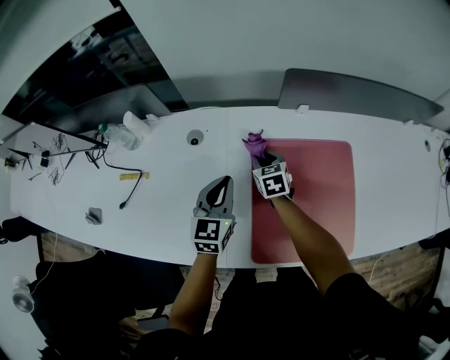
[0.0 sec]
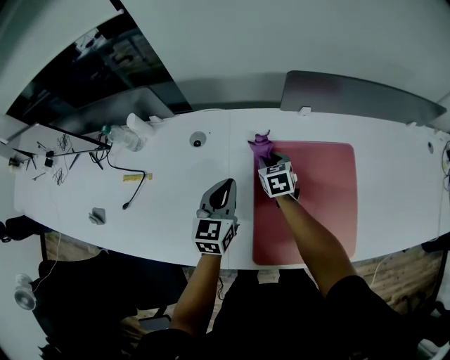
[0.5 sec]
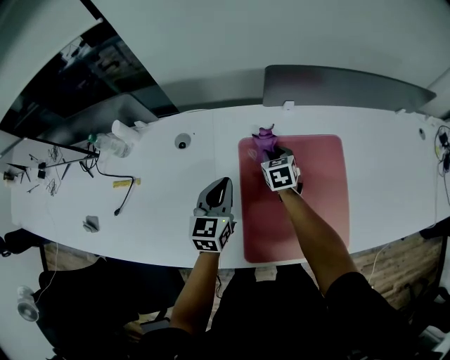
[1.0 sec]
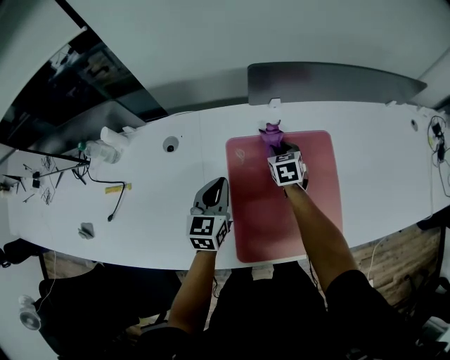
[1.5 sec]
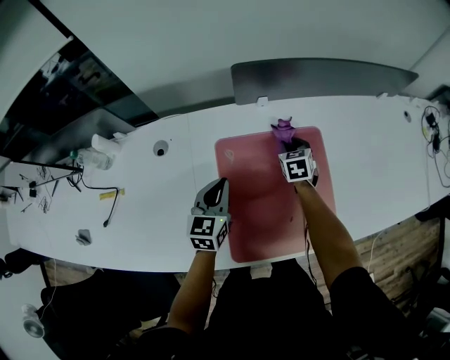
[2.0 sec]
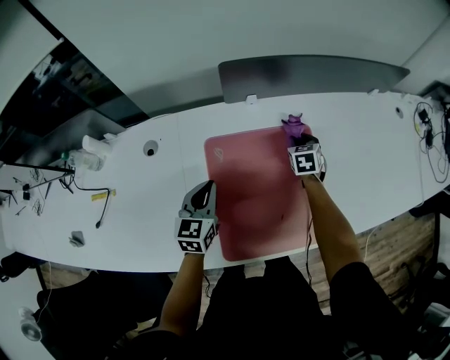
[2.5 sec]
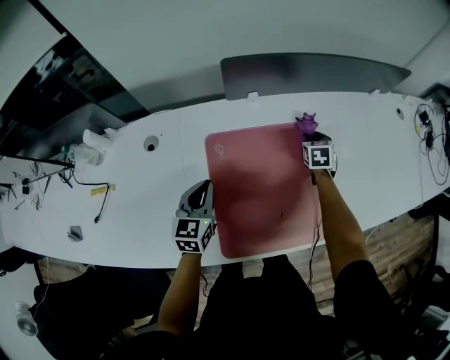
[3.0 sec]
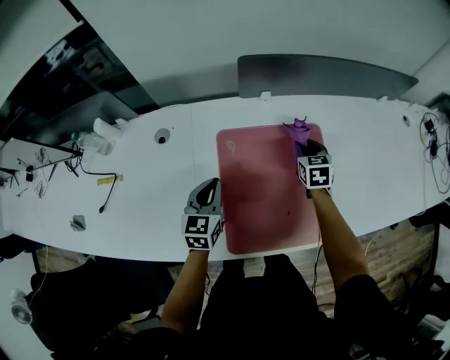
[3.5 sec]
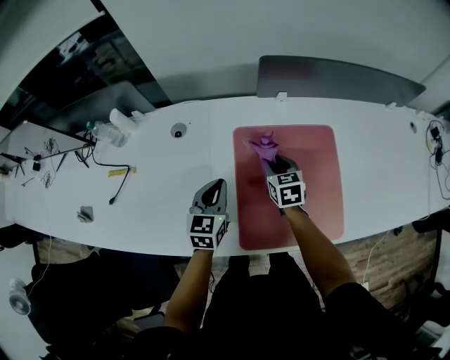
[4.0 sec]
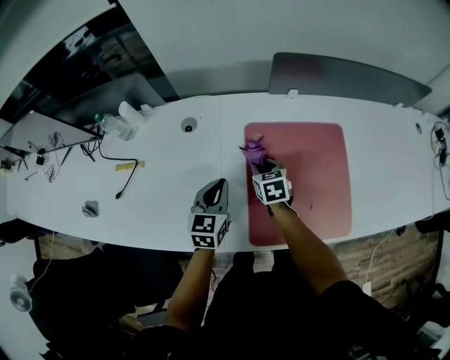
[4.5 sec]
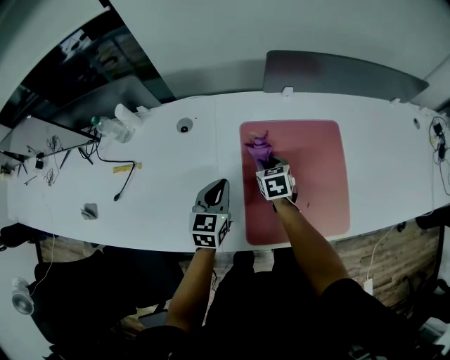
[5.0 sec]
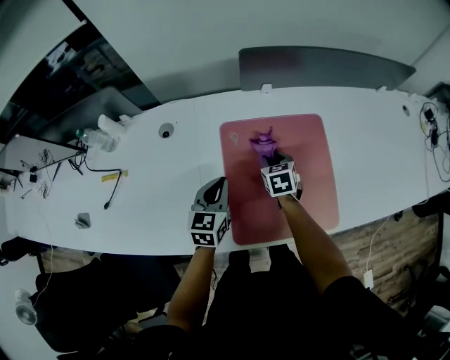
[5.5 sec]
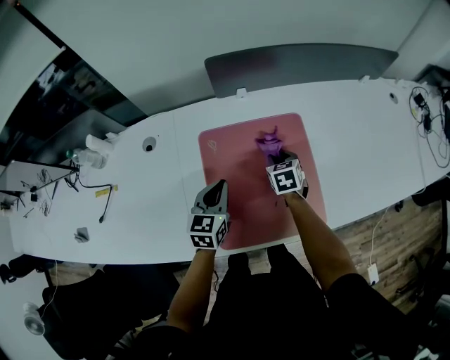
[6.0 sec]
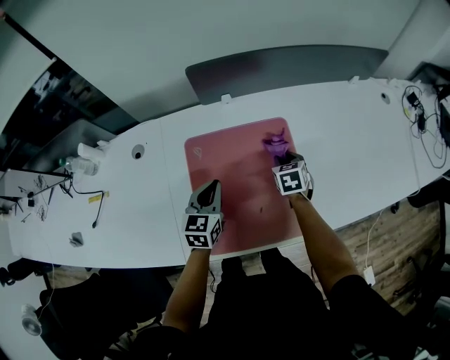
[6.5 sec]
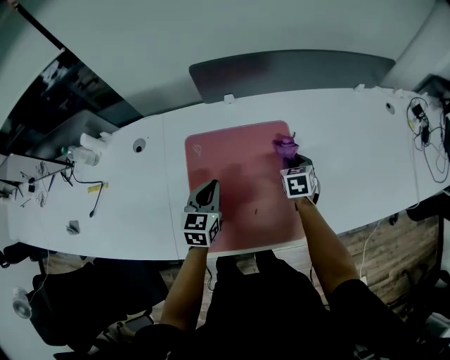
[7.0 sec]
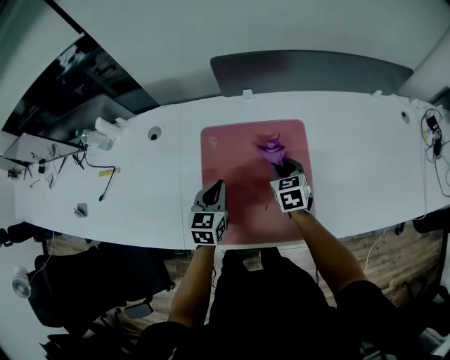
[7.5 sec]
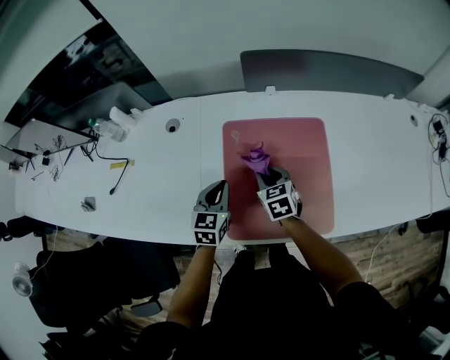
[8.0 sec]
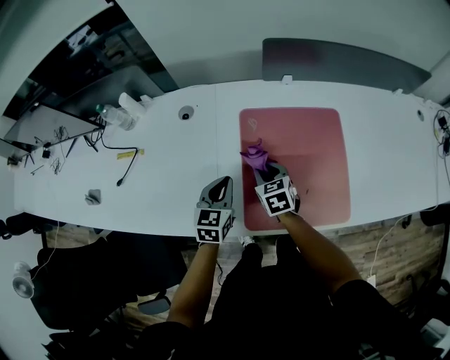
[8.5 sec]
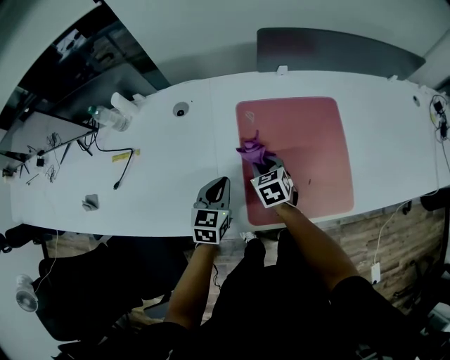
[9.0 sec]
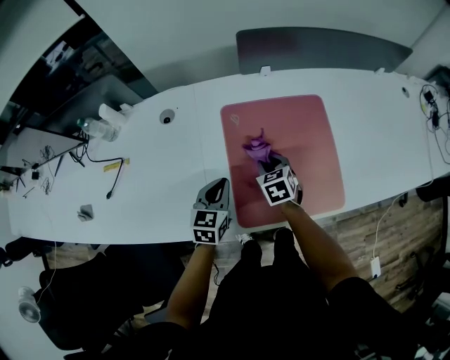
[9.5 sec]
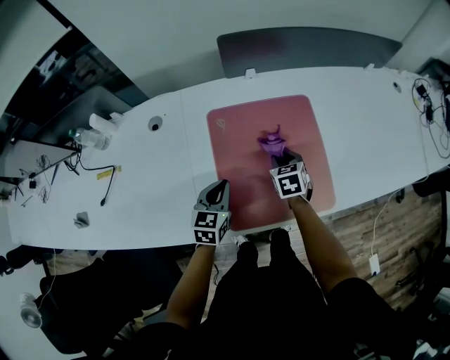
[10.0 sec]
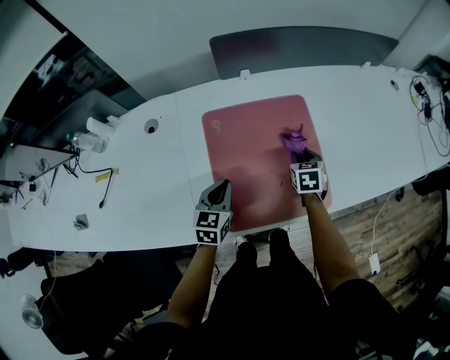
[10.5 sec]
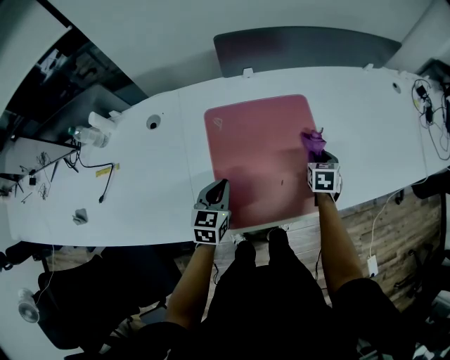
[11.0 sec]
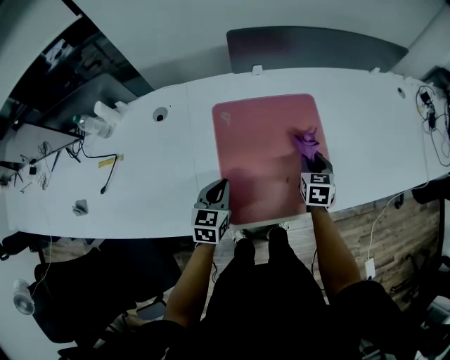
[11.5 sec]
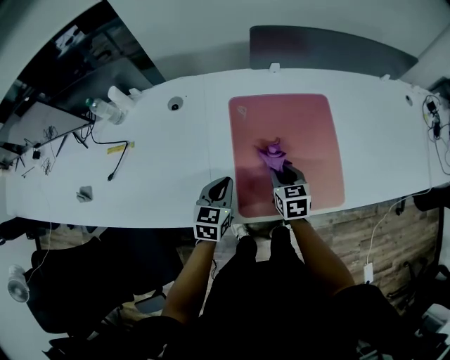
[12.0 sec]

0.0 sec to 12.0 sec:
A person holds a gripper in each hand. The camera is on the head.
0.0 sec to 2.0 sec: The right gripper is displaced to the right by about 25 cm; the left gripper goes approximately 10 cm to the right.
2.0 sec to 4.0 sec: The right gripper moves backward and to the left, about 15 cm. Meanwhile the left gripper moves backward and to the left, some 10 cm.
4.0 sec to 6.0 sec: The grippers both shift to the right by some 10 cm.
6.0 sec to 8.0 sec: The right gripper moves to the left and backward, some 15 cm, while the left gripper shifts some 5 cm to the left.
8.0 sec to 10.0 sec: The left gripper goes to the left and returns, about 5 cm each way. The right gripper shifts approximately 10 cm to the right.
10.0 sec to 12.0 sec: The left gripper changes place by roughly 5 cm. The right gripper shifts some 10 cm backward, and travels to the right and back again, some 15 cm each way.

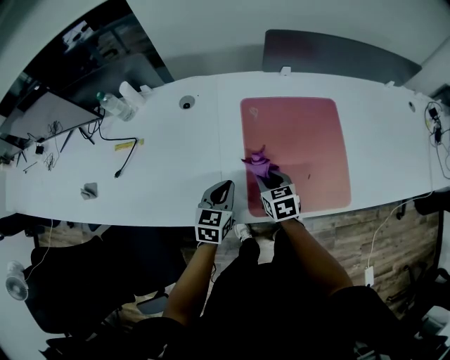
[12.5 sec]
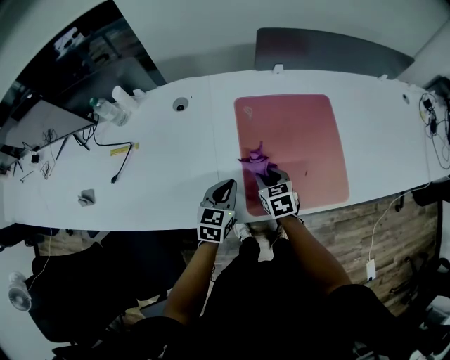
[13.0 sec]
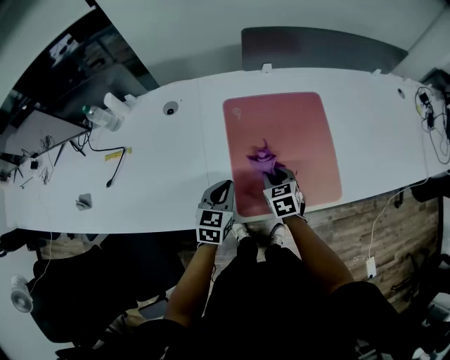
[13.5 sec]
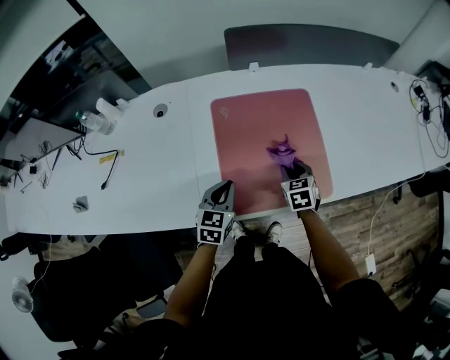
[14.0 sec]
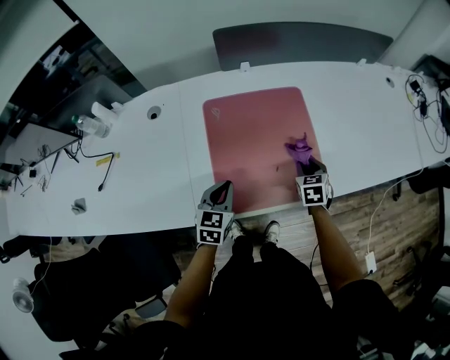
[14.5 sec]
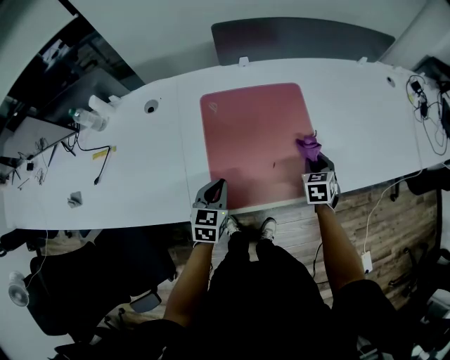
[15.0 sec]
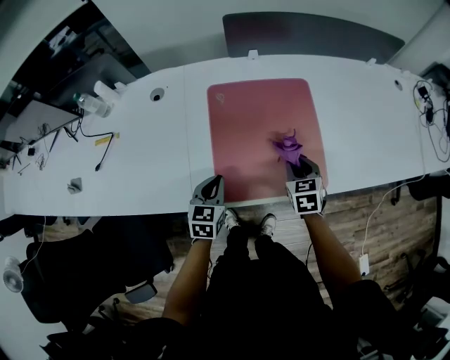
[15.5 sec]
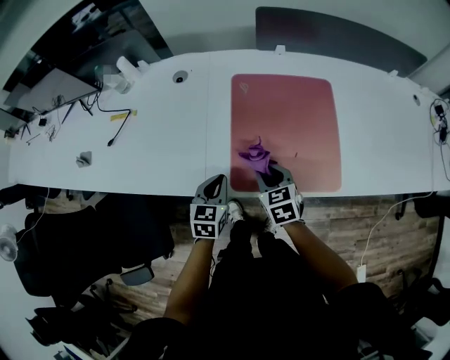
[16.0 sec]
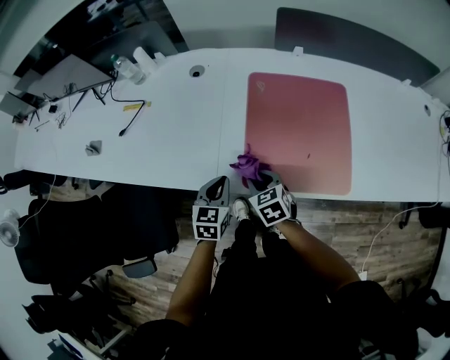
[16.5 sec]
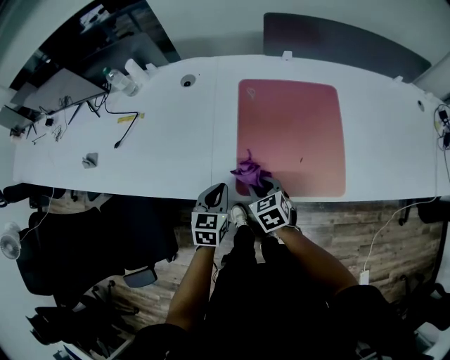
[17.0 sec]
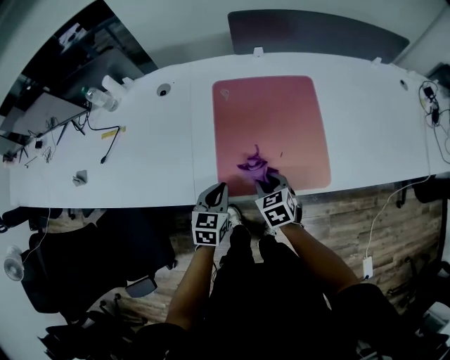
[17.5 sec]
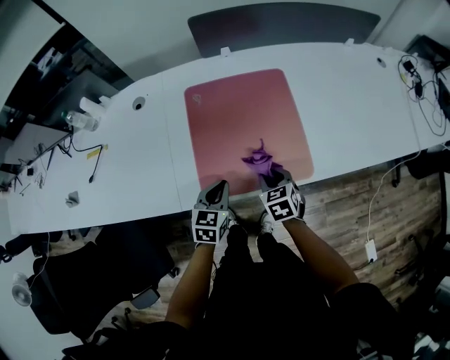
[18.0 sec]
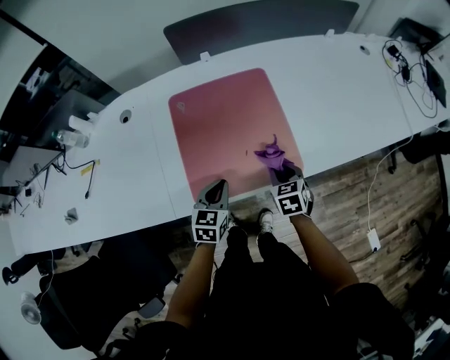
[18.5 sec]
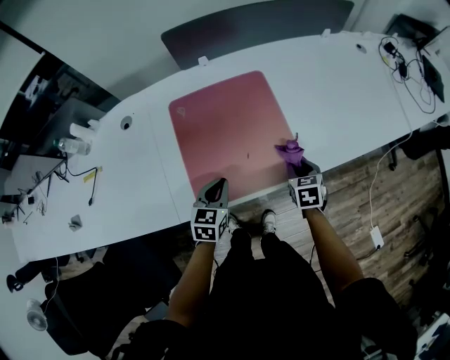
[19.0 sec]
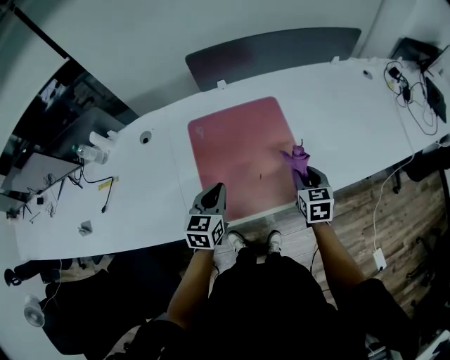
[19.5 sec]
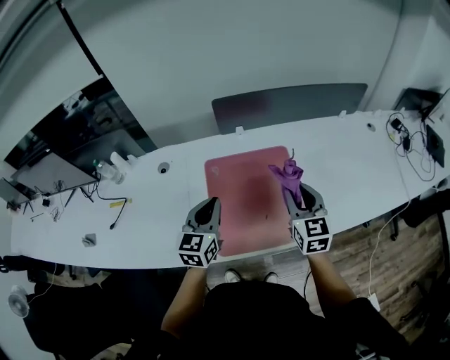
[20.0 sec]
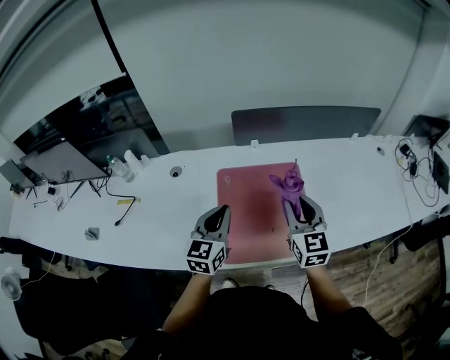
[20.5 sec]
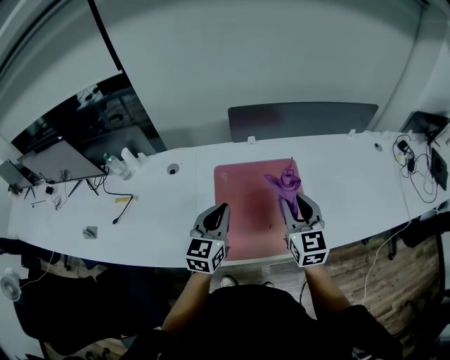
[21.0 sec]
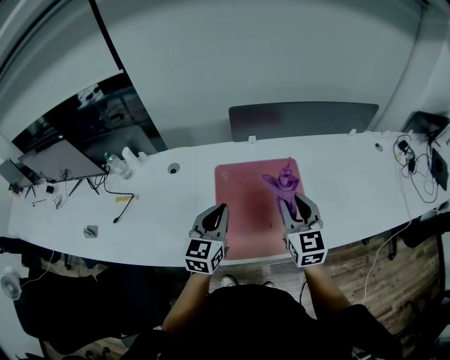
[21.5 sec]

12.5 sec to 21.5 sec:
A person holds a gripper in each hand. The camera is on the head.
12.5 sec to 14.5 sec: The left gripper shifts some 10 cm to the right; the right gripper goes about 25 cm to the right, and swivels about 20 degrees.
14.5 sec to 17.0 sec: The right gripper moves about 30 cm, and changes its angle by some 30 degrees, while the left gripper changes place by approximately 10 cm.
17.0 sec to 19.5 sec: The left gripper moves about 15 cm. Meanwhile the right gripper ends up approximately 30 cm from where it was, and turns by roughly 40 degrees.
19.5 sec to 21.5 sec: The right gripper travels upward and to the left by about 20 cm, and turns by approximately 30 degrees, while the left gripper is displaced upward by about 15 cm.

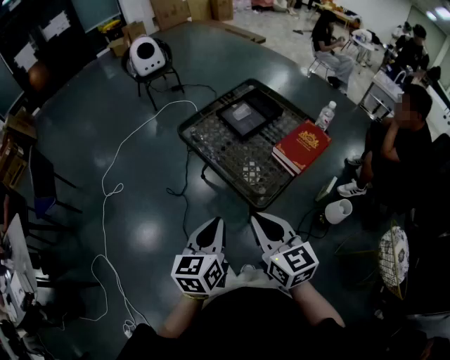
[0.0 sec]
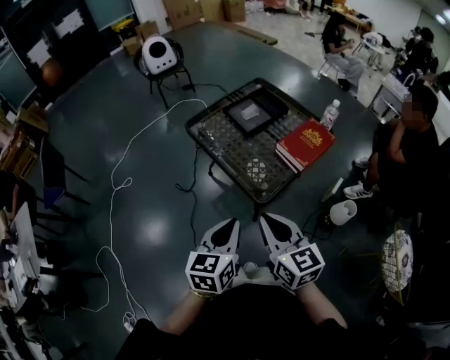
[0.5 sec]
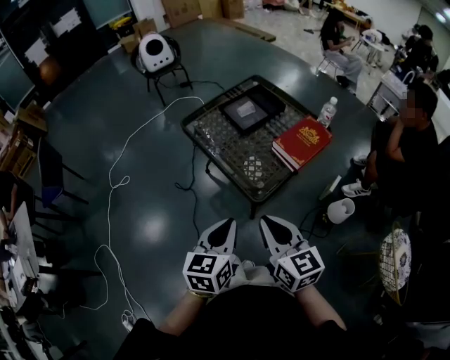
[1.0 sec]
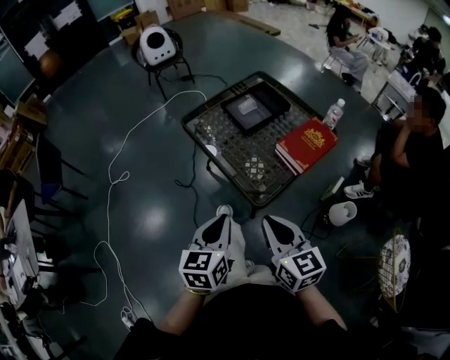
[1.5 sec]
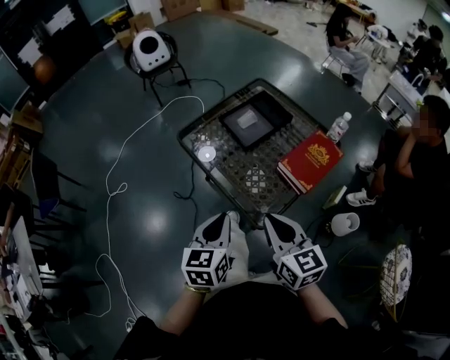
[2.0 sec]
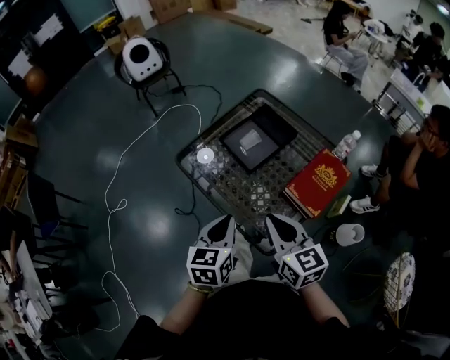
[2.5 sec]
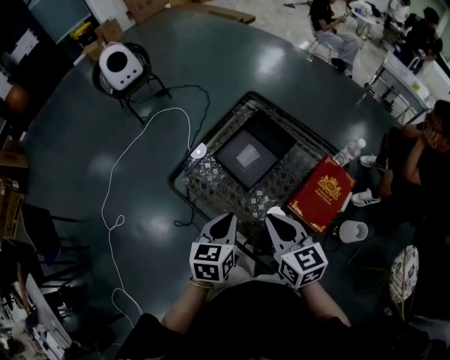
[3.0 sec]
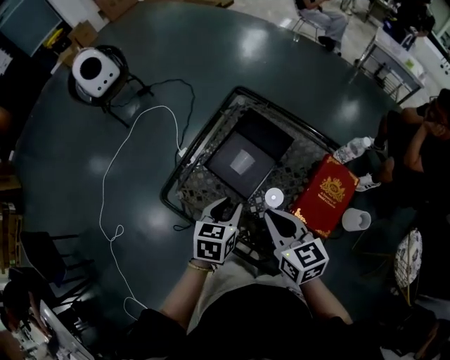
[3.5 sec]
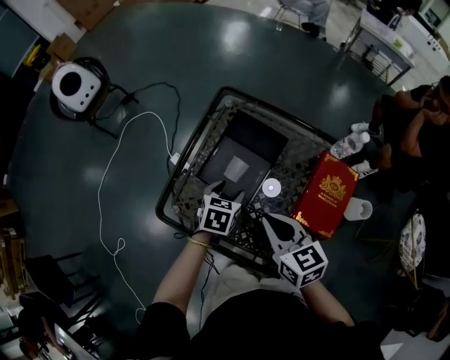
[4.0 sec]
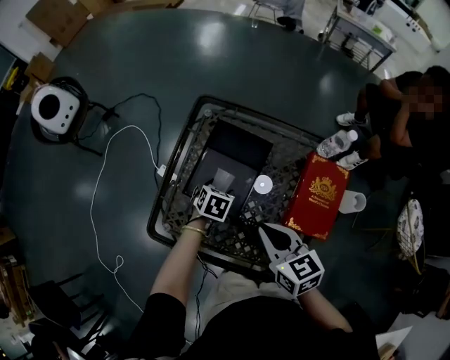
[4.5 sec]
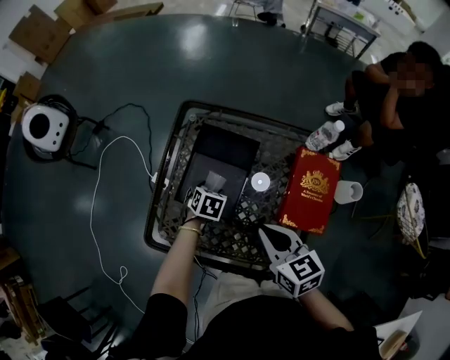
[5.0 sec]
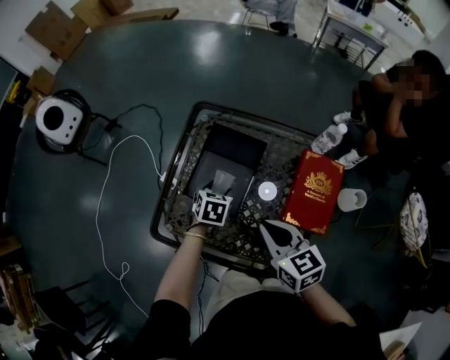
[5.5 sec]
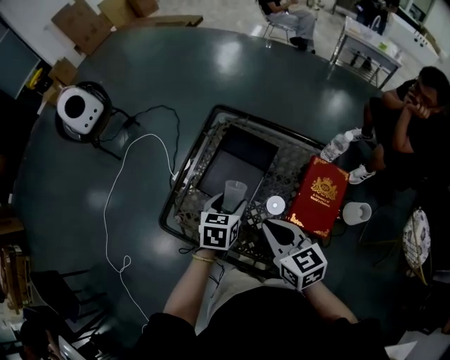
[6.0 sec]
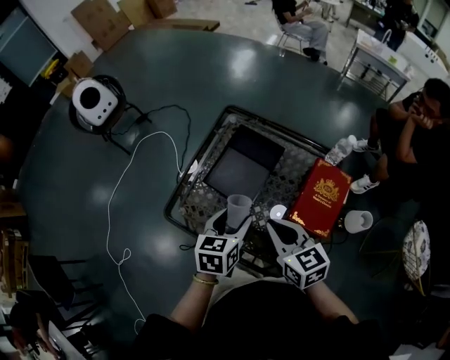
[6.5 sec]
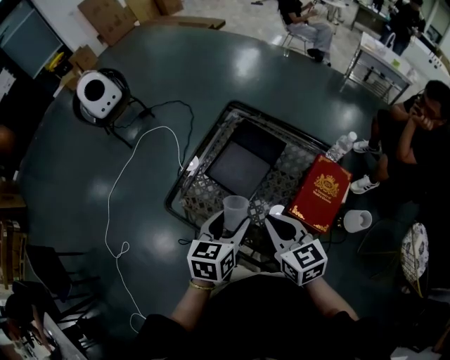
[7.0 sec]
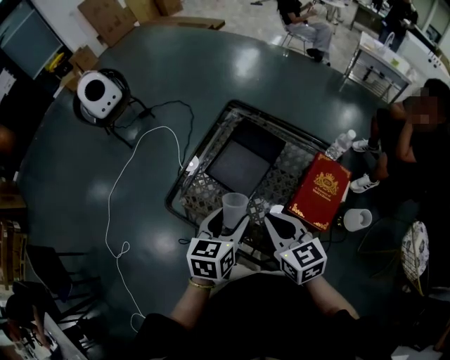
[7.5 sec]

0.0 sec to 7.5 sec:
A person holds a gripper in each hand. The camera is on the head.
0.0 sec to 2.0 sec: The right gripper goes some 10 cm forward and to the right, while the left gripper travels forward by roughly 10 cm.
2.0 sec to 4.0 sec: The two grippers go some 35 cm forward. The right gripper swivels about 20 degrees. The left gripper turns by approximately 50 degrees, and opens its fingers.
5.5 sec to 7.5 sec: The right gripper shifts some 5 cm backward, while the left gripper goes approximately 25 cm backward and upward, and rotates some 30 degrees.
